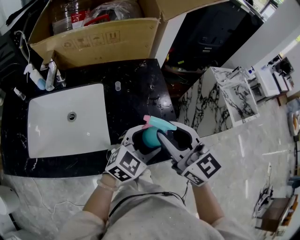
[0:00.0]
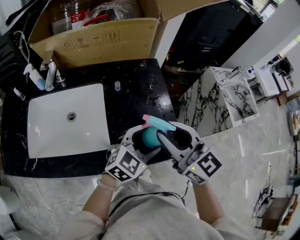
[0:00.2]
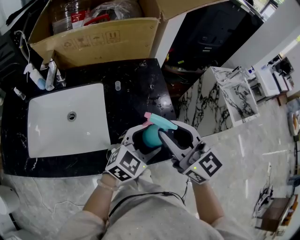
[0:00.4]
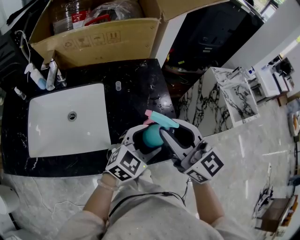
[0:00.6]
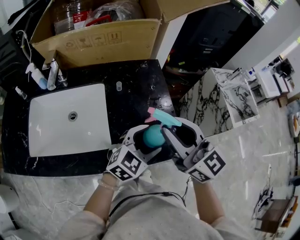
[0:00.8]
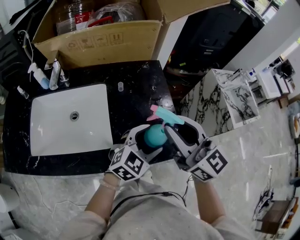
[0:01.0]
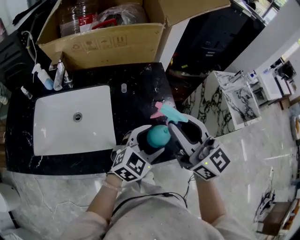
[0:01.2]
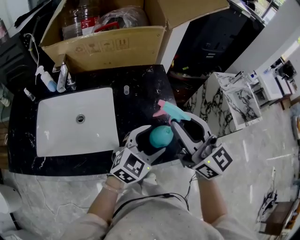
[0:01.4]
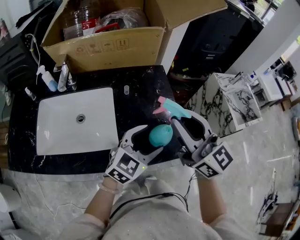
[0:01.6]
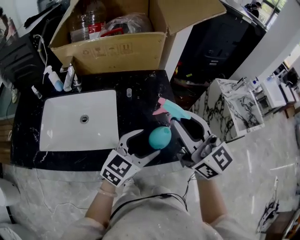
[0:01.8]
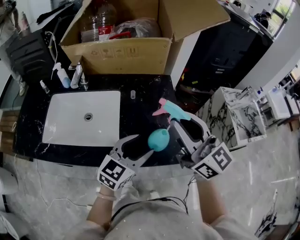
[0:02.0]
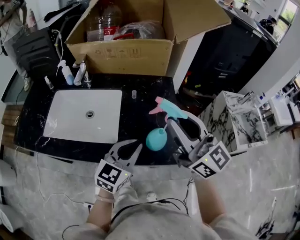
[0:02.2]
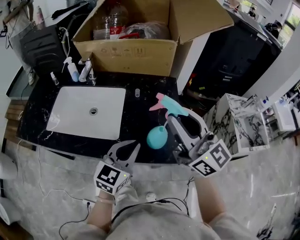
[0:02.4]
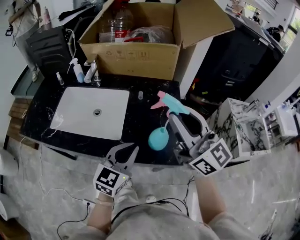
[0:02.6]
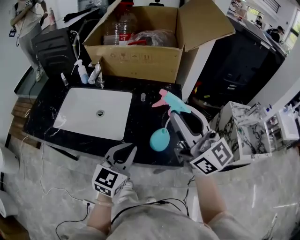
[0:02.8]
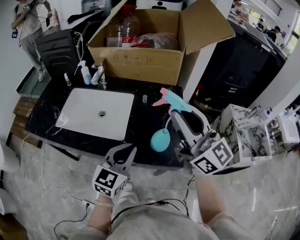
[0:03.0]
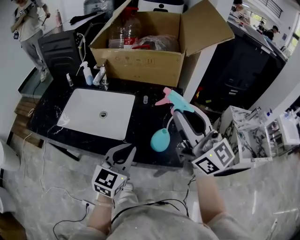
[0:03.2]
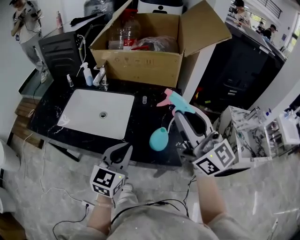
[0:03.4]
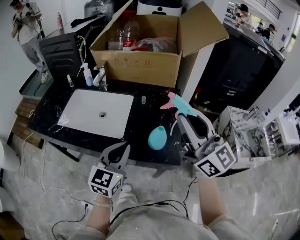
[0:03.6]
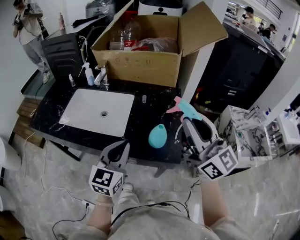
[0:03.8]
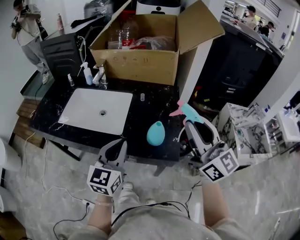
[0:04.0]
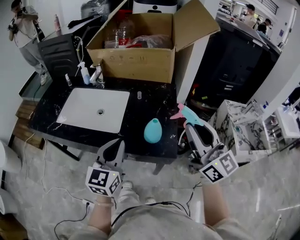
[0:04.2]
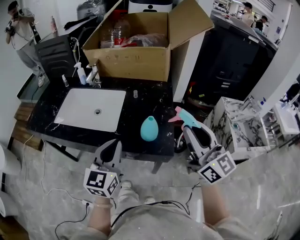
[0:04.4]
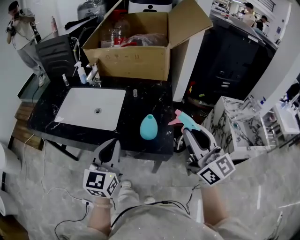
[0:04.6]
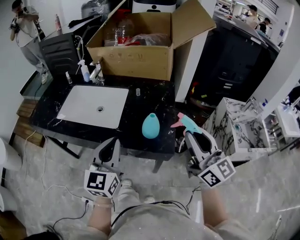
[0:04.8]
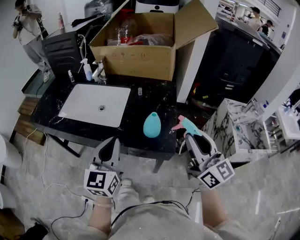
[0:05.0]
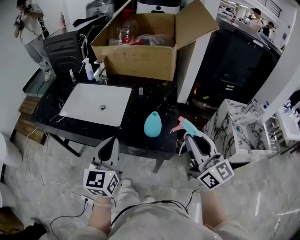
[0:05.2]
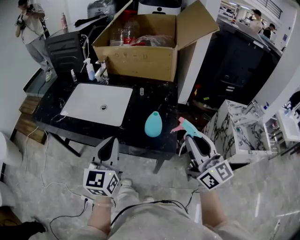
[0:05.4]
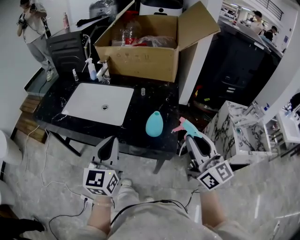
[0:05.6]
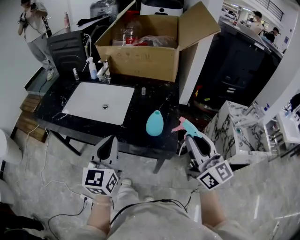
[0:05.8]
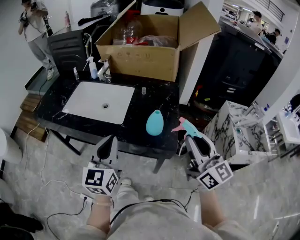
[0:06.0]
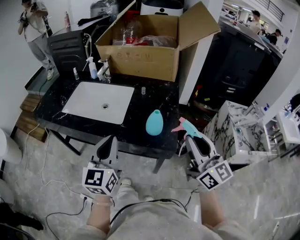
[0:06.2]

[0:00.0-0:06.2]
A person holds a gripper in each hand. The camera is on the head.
0.0 to 1.6 s: The right gripper heads upward, covering approximately 5 cm.
1.6 to 3.2 s: The left gripper ends up some 10 cm from where it was, turns by roughly 40 degrees, and closes; the right gripper goes some 10 cm upward, and rotates roughly 20 degrees.
3.2 to 4.6 s: The right gripper travels to the right, backward and downward by some 15 cm; the left gripper moves about 5 cm.
4.6 to 6.2 s: The grippers move only a little.

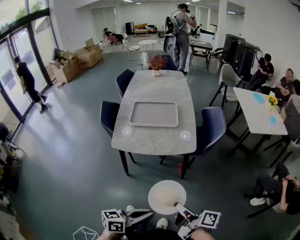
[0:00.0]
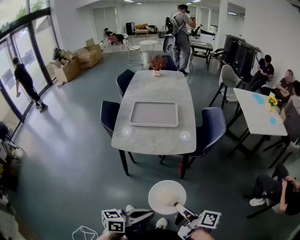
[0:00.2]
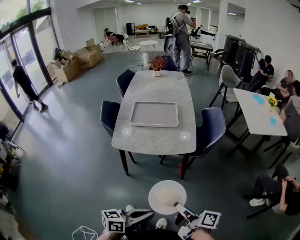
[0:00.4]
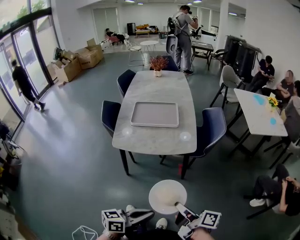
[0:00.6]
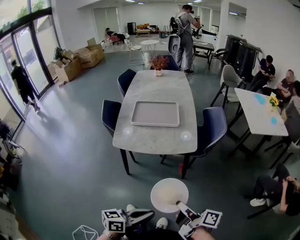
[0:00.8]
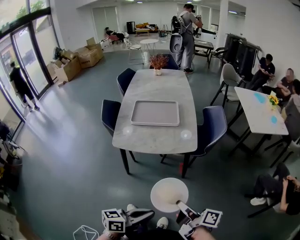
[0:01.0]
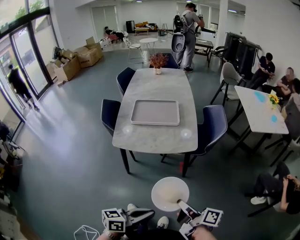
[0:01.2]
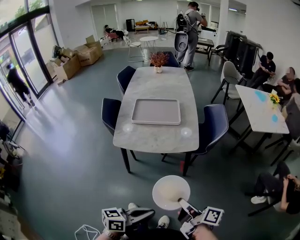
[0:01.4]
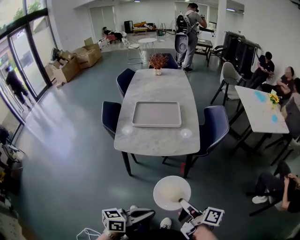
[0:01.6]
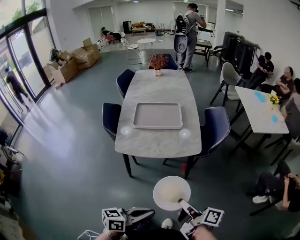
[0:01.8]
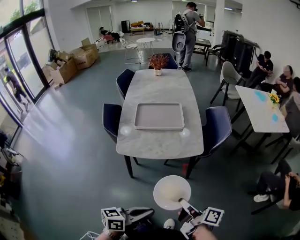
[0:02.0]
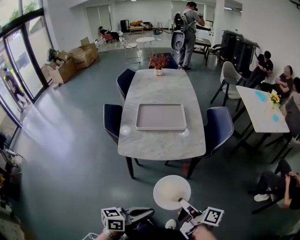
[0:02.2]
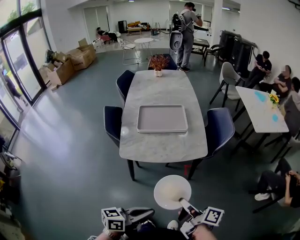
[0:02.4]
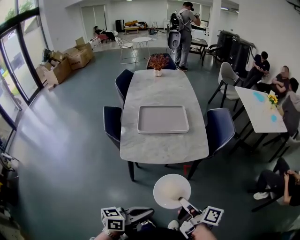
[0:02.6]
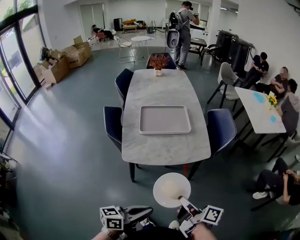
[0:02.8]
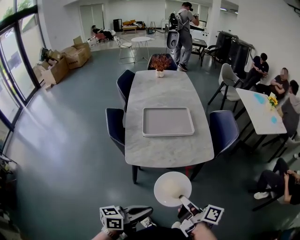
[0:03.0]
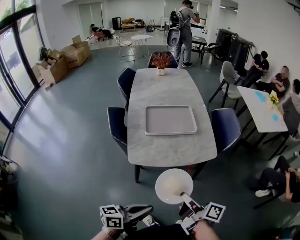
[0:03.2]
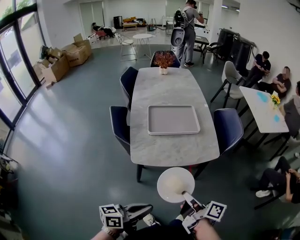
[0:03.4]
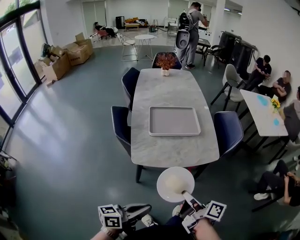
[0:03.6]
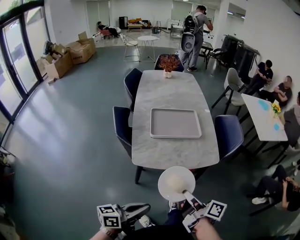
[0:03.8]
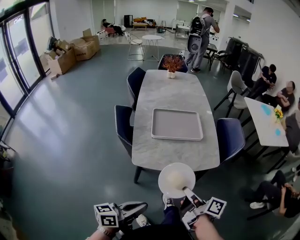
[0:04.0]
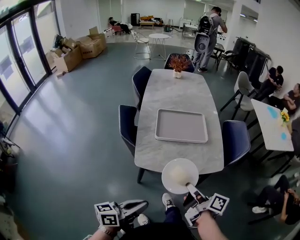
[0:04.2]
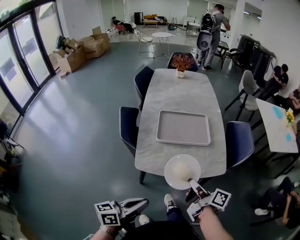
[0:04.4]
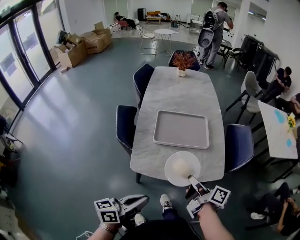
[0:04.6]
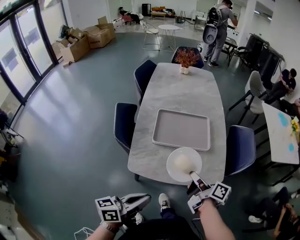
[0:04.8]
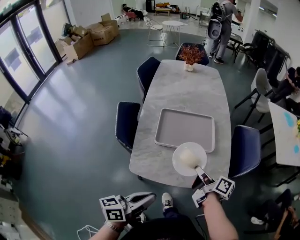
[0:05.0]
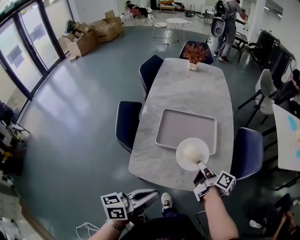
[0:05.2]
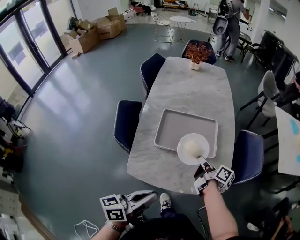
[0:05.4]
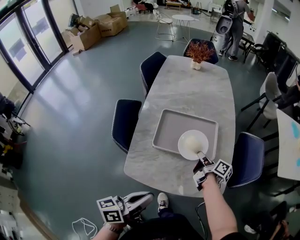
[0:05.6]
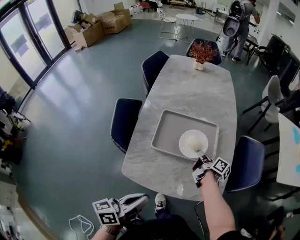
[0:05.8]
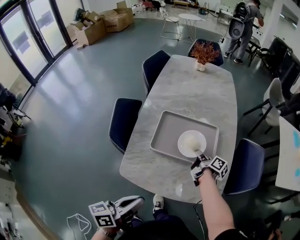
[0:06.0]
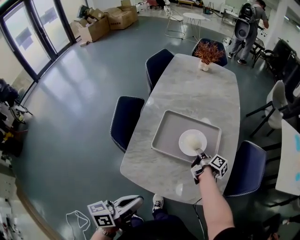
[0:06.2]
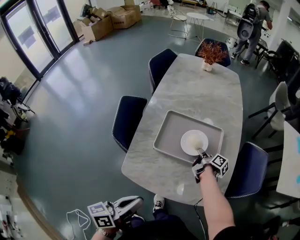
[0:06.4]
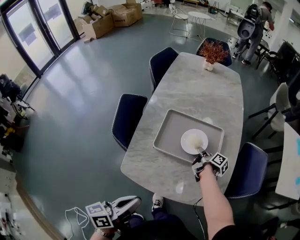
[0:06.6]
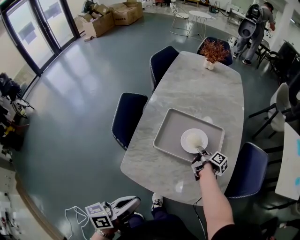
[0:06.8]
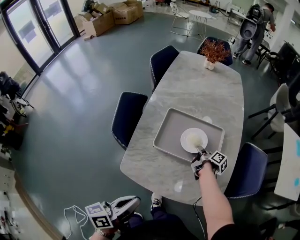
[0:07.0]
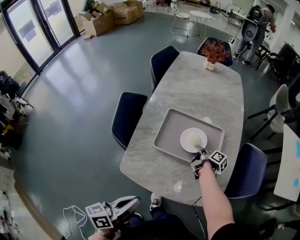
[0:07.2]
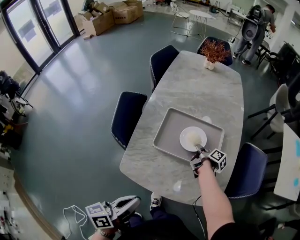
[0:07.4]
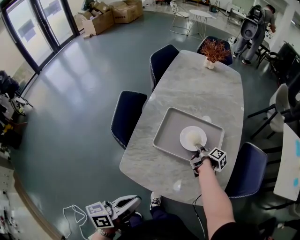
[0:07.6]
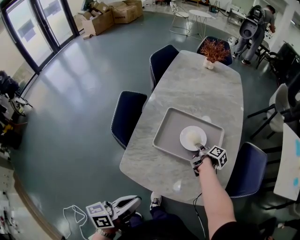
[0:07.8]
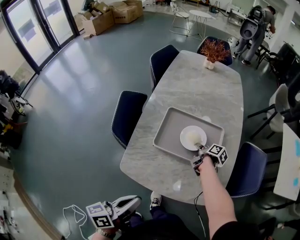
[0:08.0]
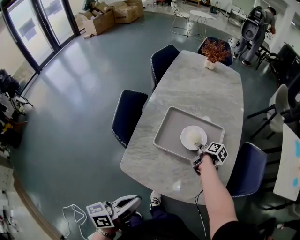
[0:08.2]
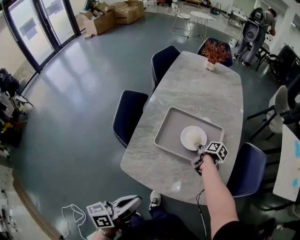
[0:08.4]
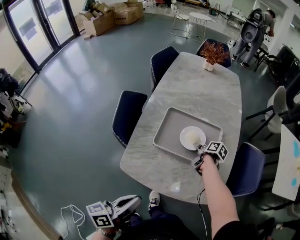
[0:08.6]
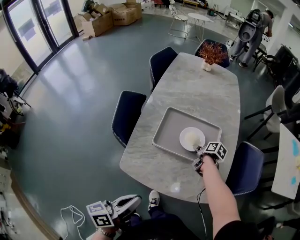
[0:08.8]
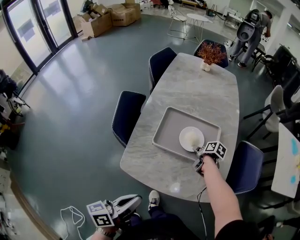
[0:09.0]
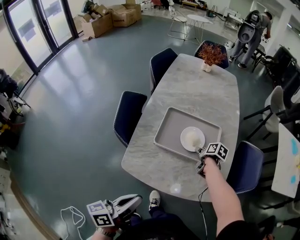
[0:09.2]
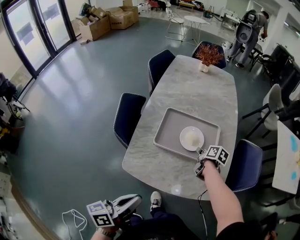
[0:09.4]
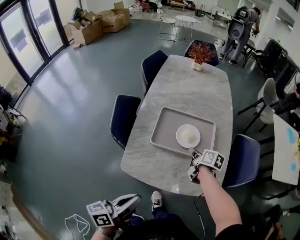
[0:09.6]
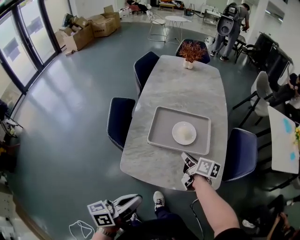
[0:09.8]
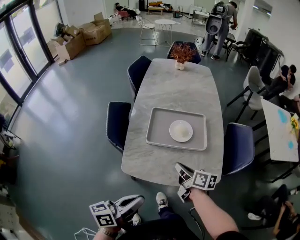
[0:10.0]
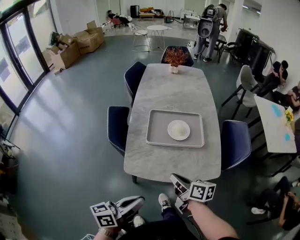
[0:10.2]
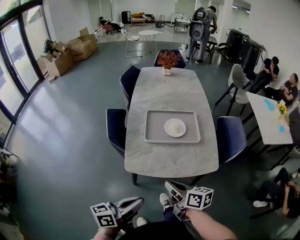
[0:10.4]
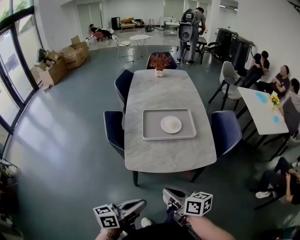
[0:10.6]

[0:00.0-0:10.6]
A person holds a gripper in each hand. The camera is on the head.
0.0 to 1.6 s: The grippers stay close to where they were, moving slightly.
1.6 to 3.0 s: Both grippers travel together to the left, some 15 cm.
3.0 to 4.6 s: The left gripper is displaced forward and to the left by some 15 cm. The right gripper heads forward, covering roughly 20 cm.
4.6 to 6.0 s: The right gripper goes some 30 cm forward and downward; the left gripper heads forward, covering about 10 cm.
6.0 to 7.6 s: The right gripper changes place by roughly 5 cm.
7.6 to 9.0 s: The right gripper rotates some 30 degrees, and opens up.
9.0 to 10.6 s: The left gripper is displaced backward by about 15 cm, and turns by about 30 degrees. Meanwhile the right gripper shifts about 50 cm backward, upward and to the left, angles its fingers upward, by some 40 degrees, and closes its fingers.

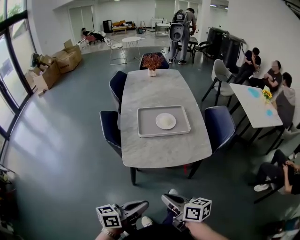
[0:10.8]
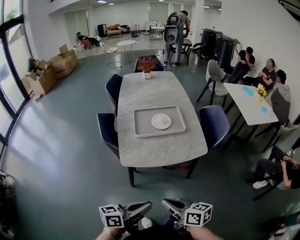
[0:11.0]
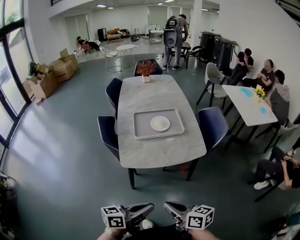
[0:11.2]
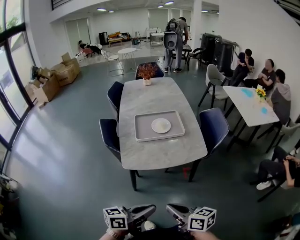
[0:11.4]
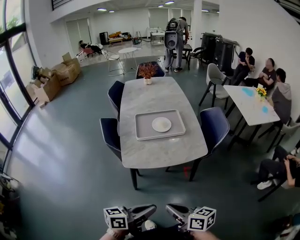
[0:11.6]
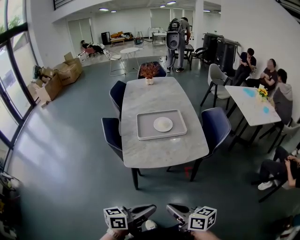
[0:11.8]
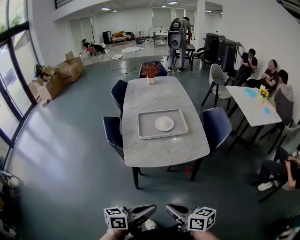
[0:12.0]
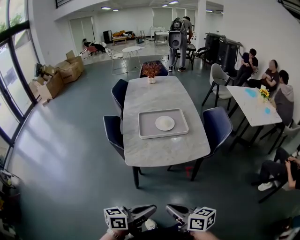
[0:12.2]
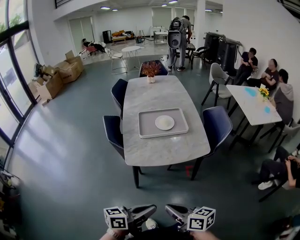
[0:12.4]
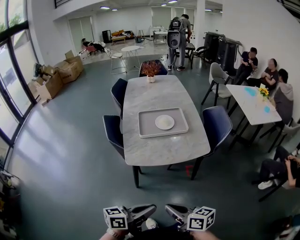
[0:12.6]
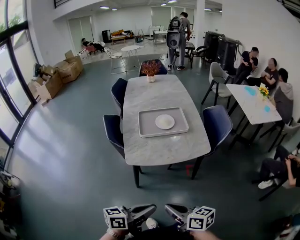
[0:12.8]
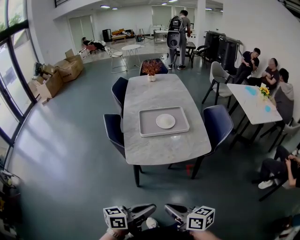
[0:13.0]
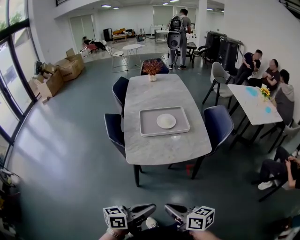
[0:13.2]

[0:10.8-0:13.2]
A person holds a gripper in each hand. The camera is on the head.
10.8 to 12.0 s: The left gripper travels backward by roughly 5 cm. Meanwhile the right gripper shifts about 10 cm backward.
12.0 to 13.2 s: The grippers stay close to where they were, moving slightly.

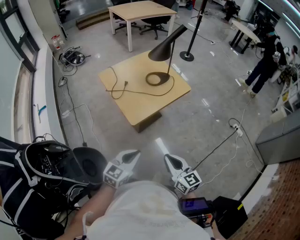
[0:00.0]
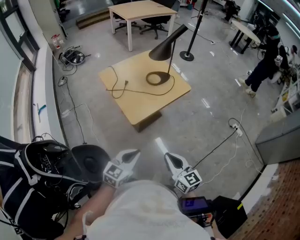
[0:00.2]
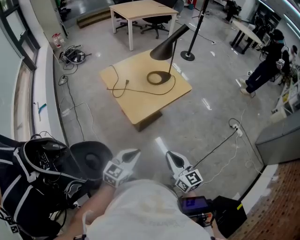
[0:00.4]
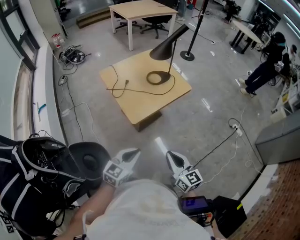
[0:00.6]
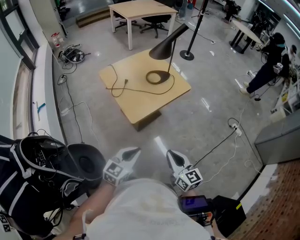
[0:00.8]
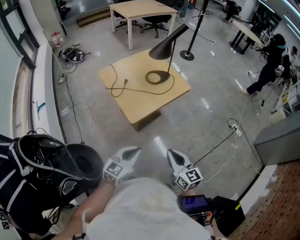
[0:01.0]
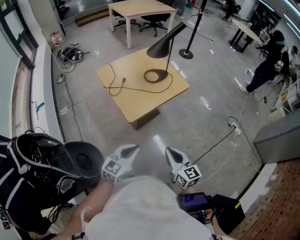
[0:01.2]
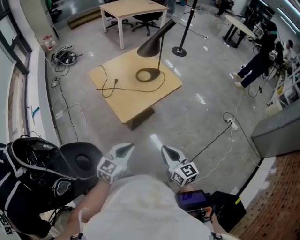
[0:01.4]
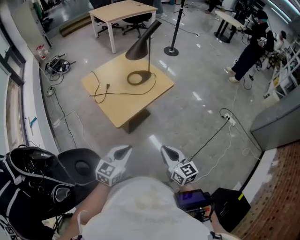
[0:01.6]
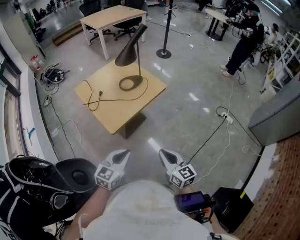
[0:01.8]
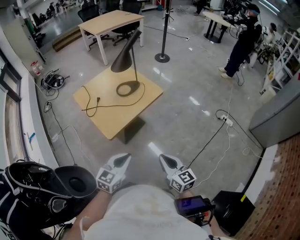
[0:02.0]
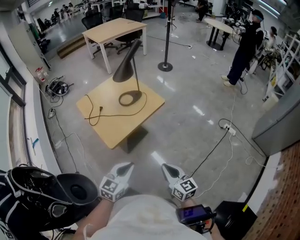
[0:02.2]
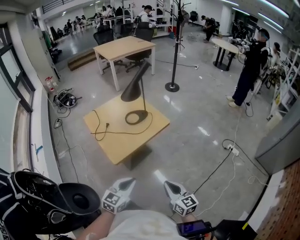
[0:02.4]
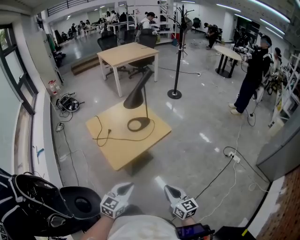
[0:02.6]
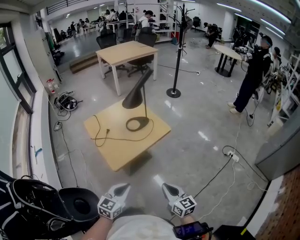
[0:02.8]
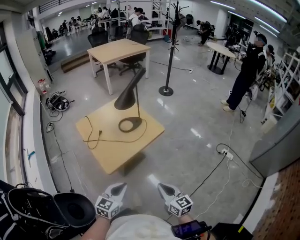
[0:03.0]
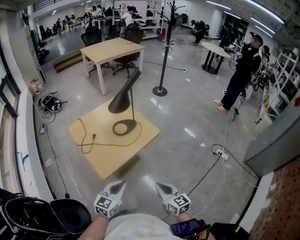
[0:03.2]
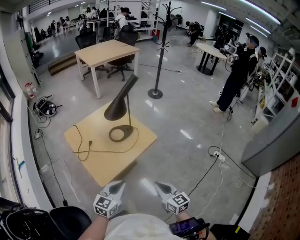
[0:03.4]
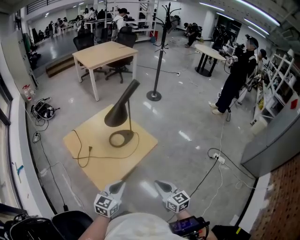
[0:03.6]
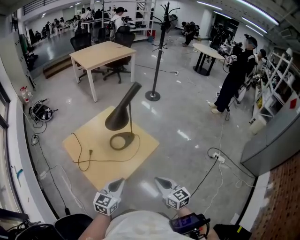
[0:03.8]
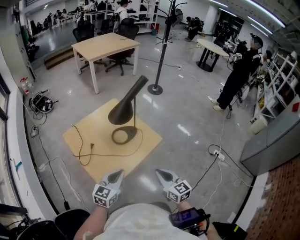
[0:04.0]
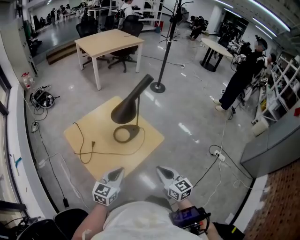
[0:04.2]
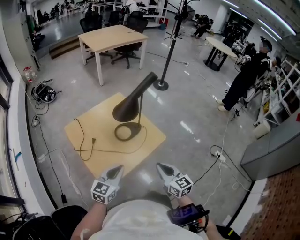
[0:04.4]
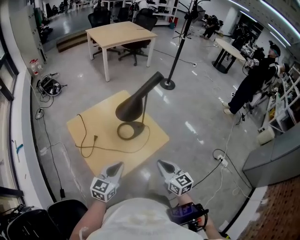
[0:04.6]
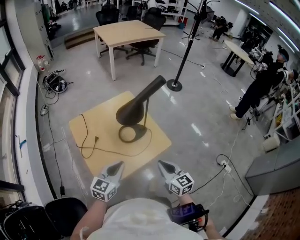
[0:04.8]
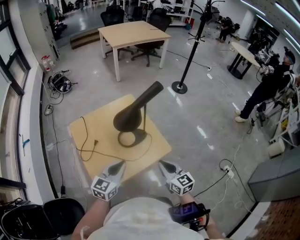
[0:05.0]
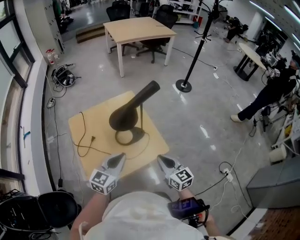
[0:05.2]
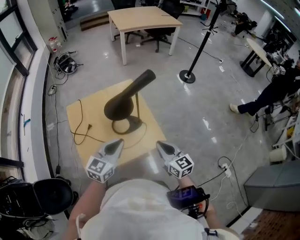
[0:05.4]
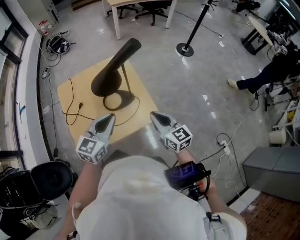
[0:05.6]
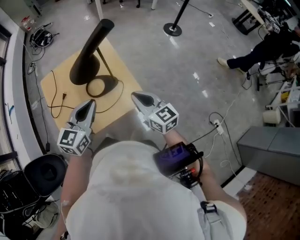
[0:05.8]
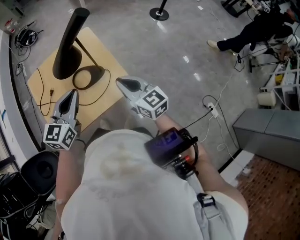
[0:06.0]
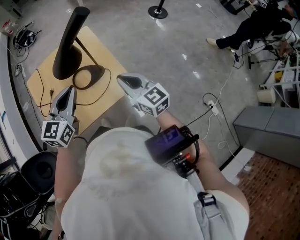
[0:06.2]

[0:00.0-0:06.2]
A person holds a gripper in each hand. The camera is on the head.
0.0 to 1.6 s: The left gripper shifts by approximately 5 cm, while the right gripper goes some 5 cm to the right.
1.6 to 3.2 s: Both grippers move forward and to the right, roughly 10 cm.
3.2 to 4.6 s: Both grippers move forward, about 20 cm.
4.6 to 6.2 s: Both grippers travel together forward and to the right, about 20 cm. The right gripper rotates about 20 degrees.
